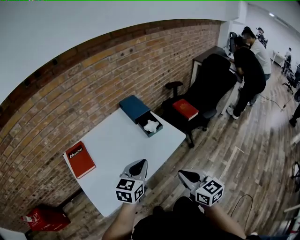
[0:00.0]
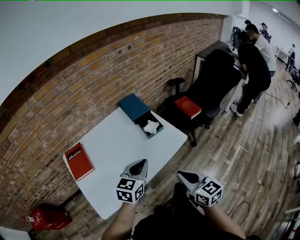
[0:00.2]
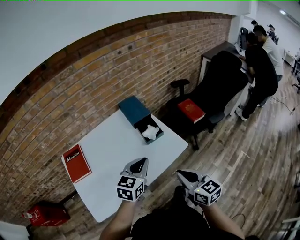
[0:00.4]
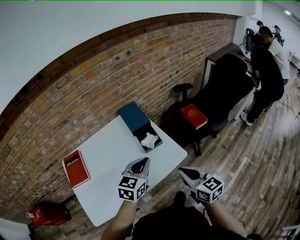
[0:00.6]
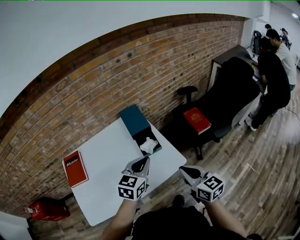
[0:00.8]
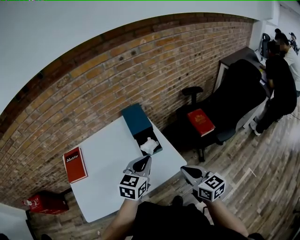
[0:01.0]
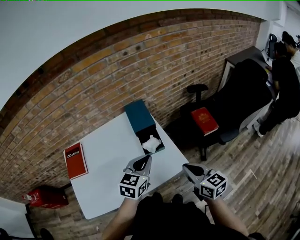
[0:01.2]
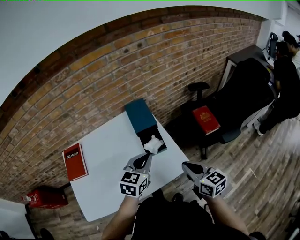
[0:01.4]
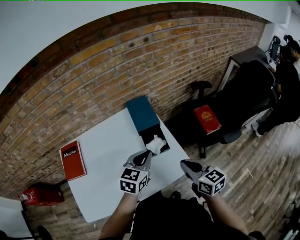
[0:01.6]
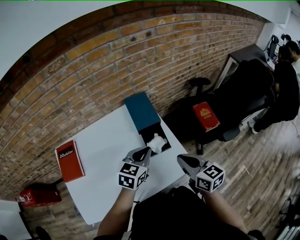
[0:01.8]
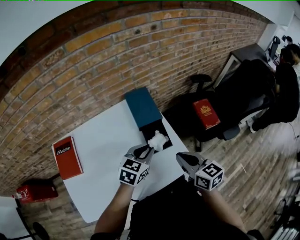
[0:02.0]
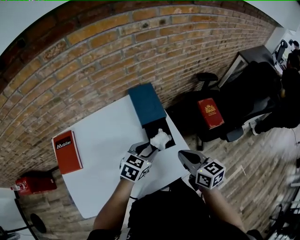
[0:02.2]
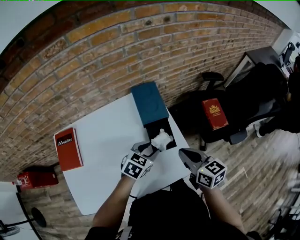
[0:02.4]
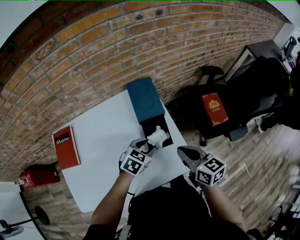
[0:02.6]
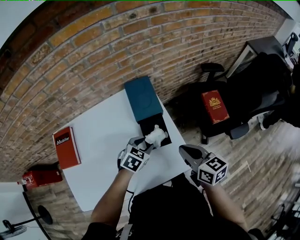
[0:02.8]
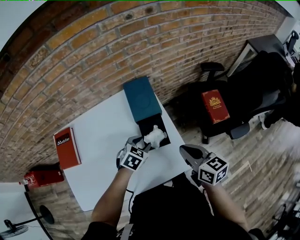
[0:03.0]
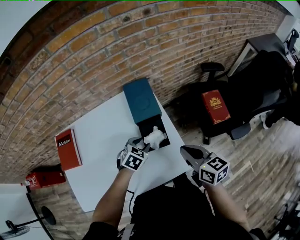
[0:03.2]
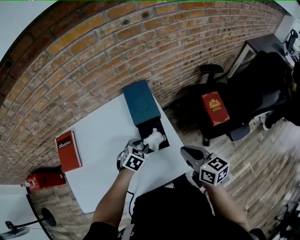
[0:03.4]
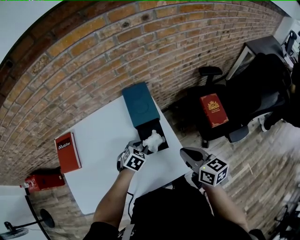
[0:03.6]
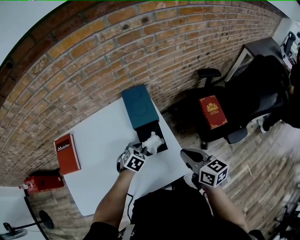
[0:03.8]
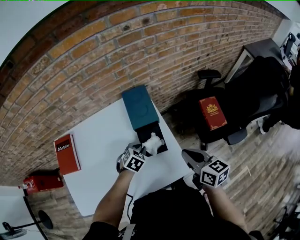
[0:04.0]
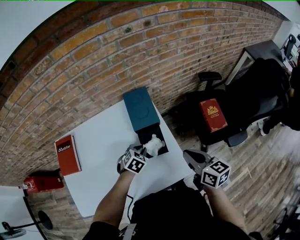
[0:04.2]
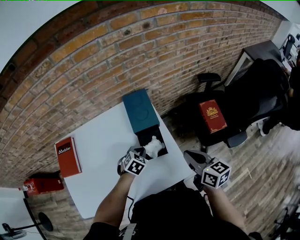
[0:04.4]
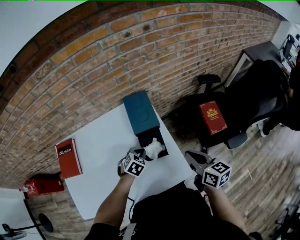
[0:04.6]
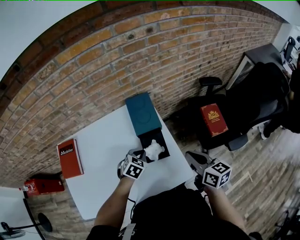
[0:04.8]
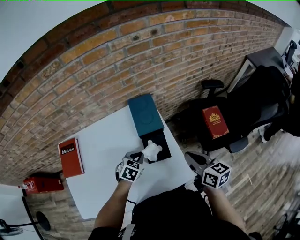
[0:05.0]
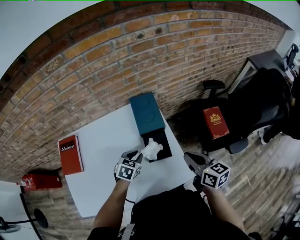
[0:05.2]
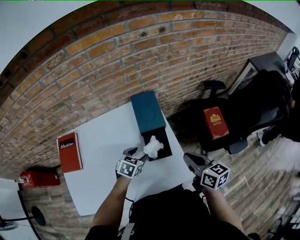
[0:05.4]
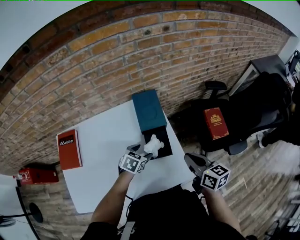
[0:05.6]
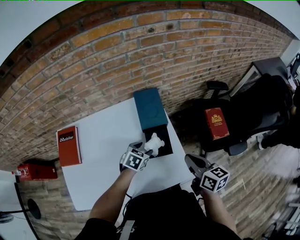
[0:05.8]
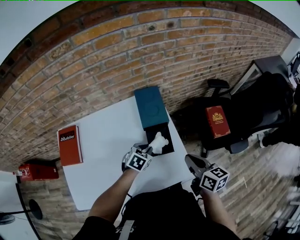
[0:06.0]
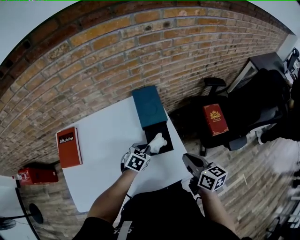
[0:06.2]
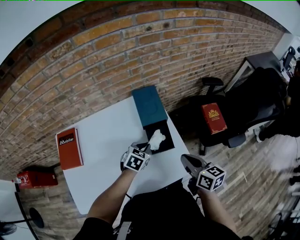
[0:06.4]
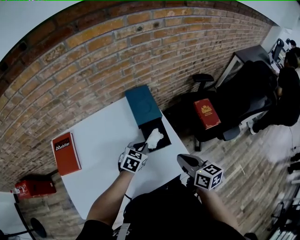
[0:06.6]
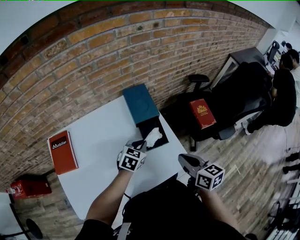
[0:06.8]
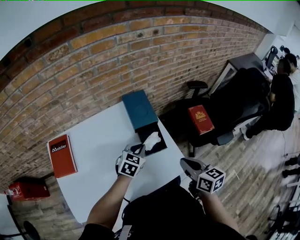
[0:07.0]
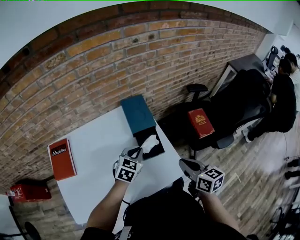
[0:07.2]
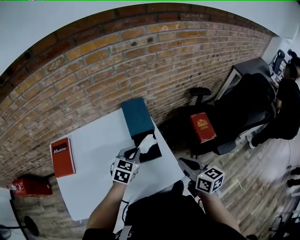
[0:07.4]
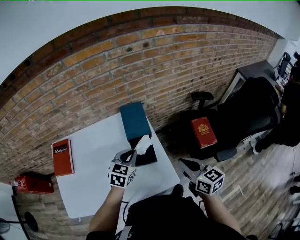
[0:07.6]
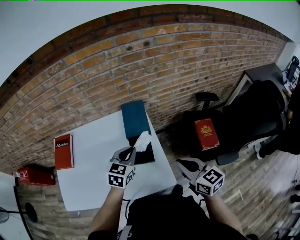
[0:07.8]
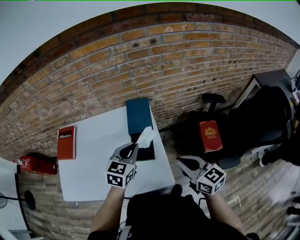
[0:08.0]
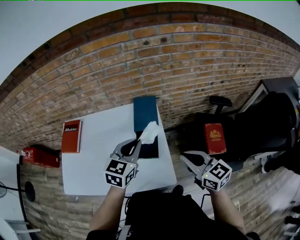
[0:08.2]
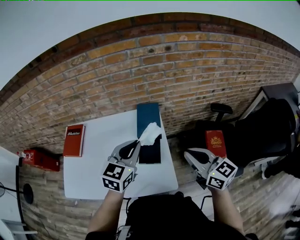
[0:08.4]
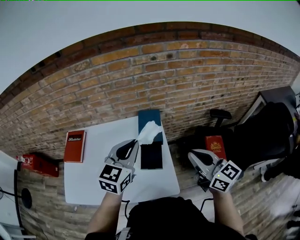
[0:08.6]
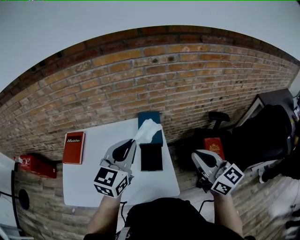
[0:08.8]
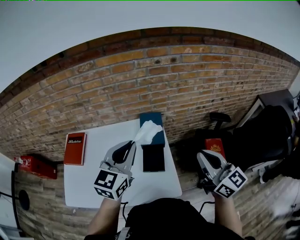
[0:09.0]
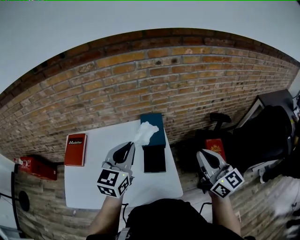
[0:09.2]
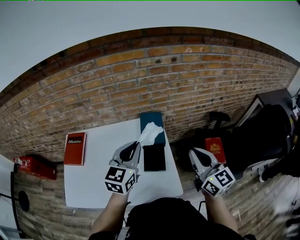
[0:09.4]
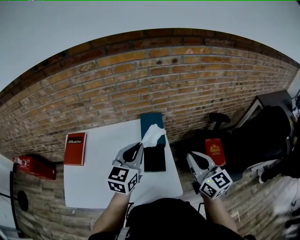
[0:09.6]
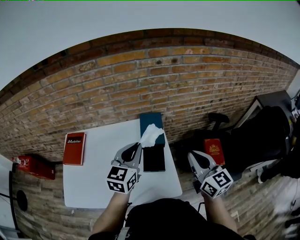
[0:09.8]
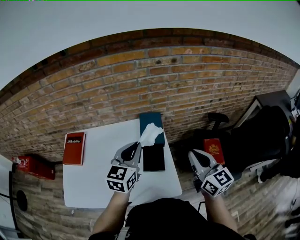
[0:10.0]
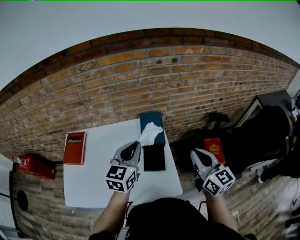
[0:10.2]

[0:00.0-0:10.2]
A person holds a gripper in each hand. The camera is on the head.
0:00.0 to 0:01.4: Both grippers move forward and to the right, approximately 25 cm.
0:01.4 to 0:03.0: The right gripper travels forward by about 10 cm; the left gripper travels downward and forward by some 20 cm, changes its angle by approximately 30 degrees, and opens up.
0:03.0 to 0:04.4: The left gripper closes.
0:04.4 to 0:05.8: The left gripper opens up.
0:05.8 to 0:07.2: The right gripper goes about 5 cm backward; the left gripper travels upward by some 10 cm, swivels about 20 degrees, and closes up.
0:07.2 to 0:08.8: The right gripper moves upward, to the right and forward, some 20 cm, and rotates some 40 degrees. The left gripper shifts some 25 cm upward, and swivels roughly 40 degrees.
0:08.8 to 0:10.2: The left gripper is displaced downward by approximately 5 cm.

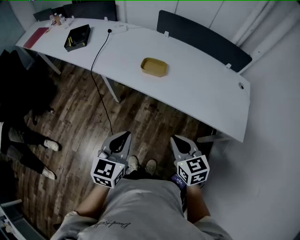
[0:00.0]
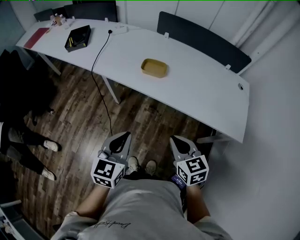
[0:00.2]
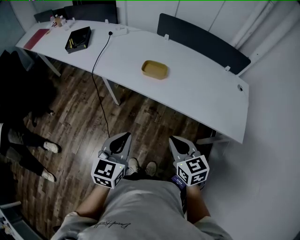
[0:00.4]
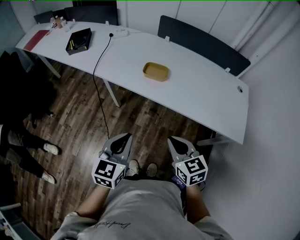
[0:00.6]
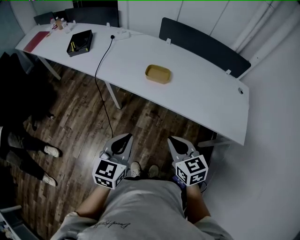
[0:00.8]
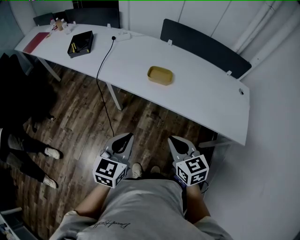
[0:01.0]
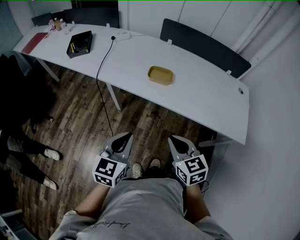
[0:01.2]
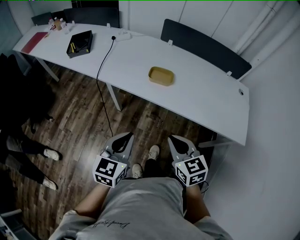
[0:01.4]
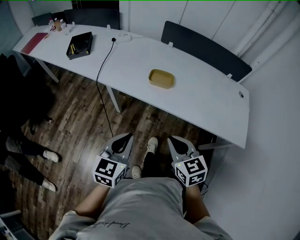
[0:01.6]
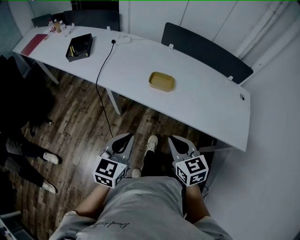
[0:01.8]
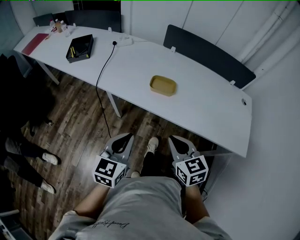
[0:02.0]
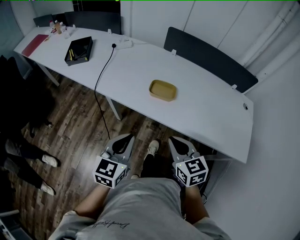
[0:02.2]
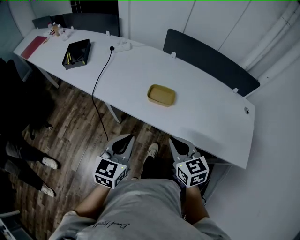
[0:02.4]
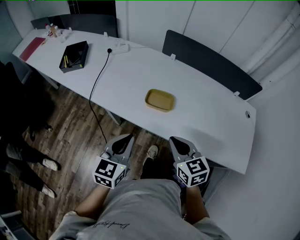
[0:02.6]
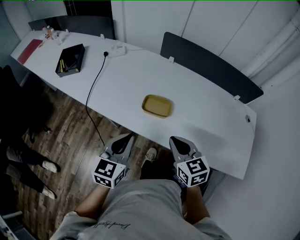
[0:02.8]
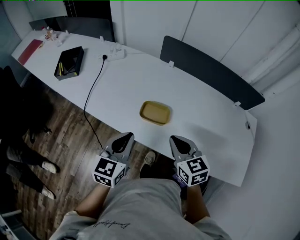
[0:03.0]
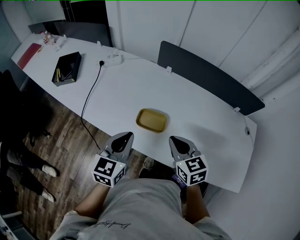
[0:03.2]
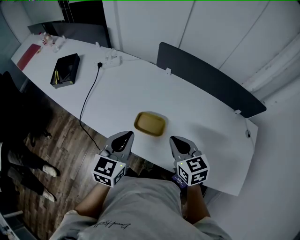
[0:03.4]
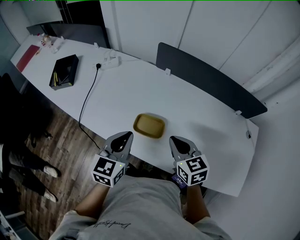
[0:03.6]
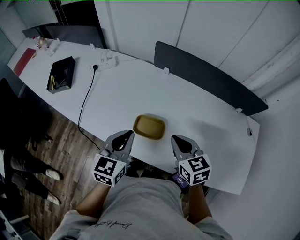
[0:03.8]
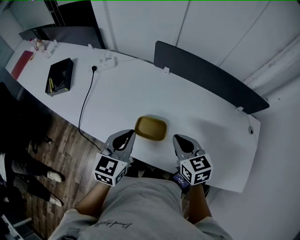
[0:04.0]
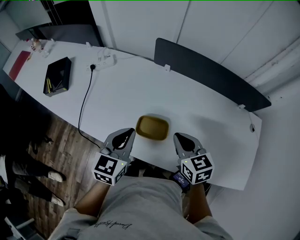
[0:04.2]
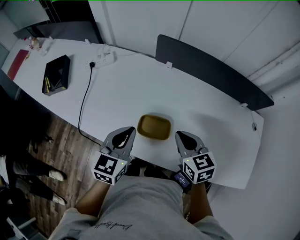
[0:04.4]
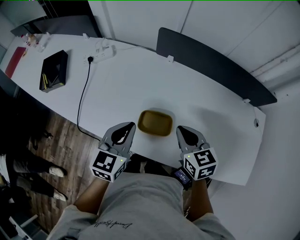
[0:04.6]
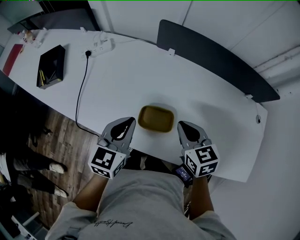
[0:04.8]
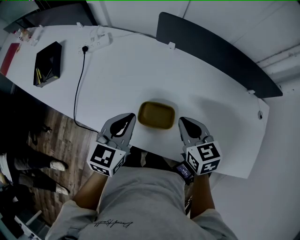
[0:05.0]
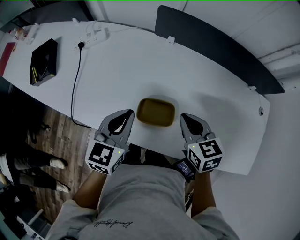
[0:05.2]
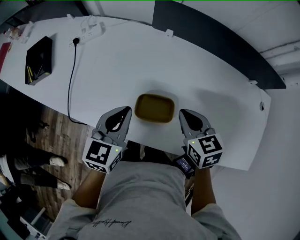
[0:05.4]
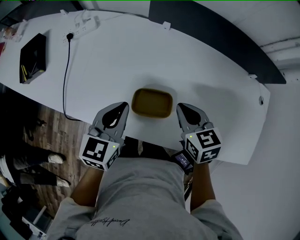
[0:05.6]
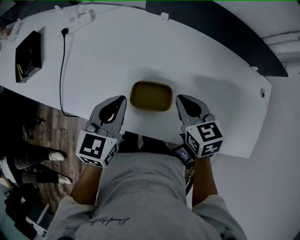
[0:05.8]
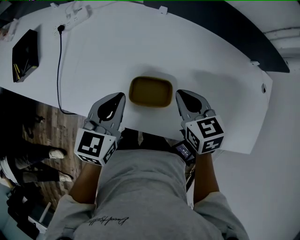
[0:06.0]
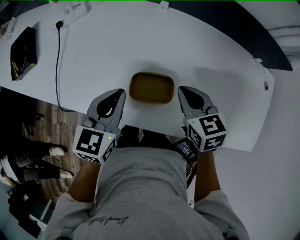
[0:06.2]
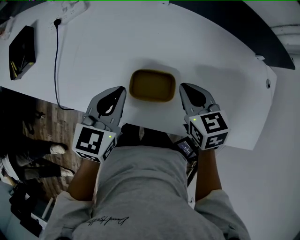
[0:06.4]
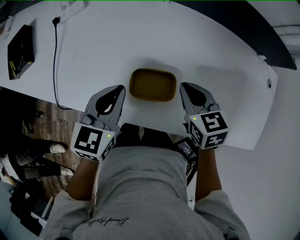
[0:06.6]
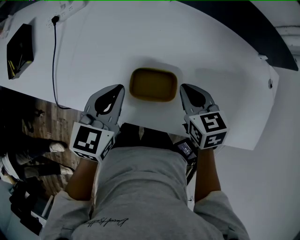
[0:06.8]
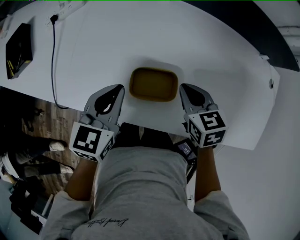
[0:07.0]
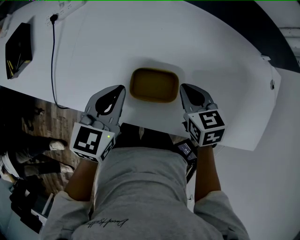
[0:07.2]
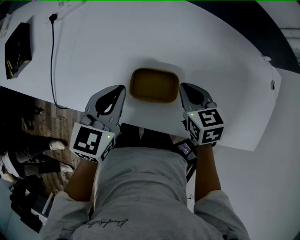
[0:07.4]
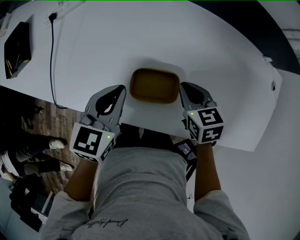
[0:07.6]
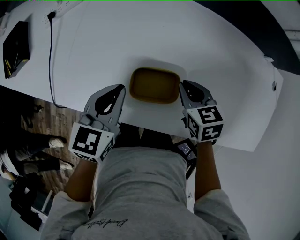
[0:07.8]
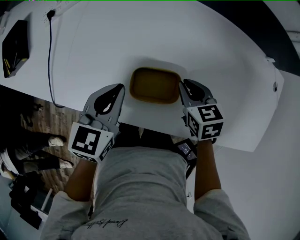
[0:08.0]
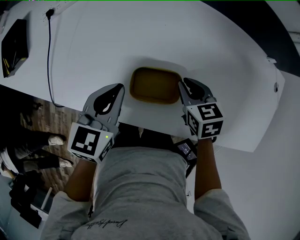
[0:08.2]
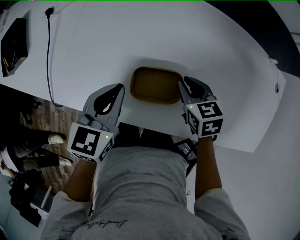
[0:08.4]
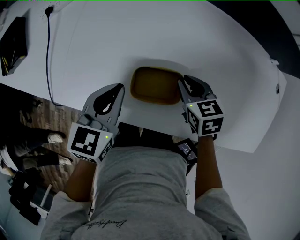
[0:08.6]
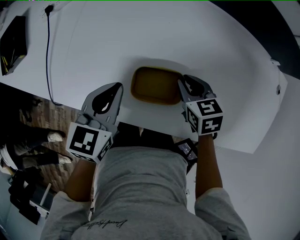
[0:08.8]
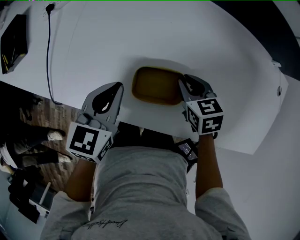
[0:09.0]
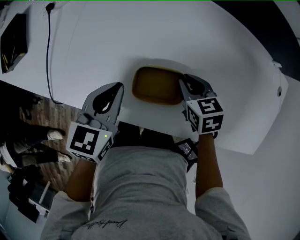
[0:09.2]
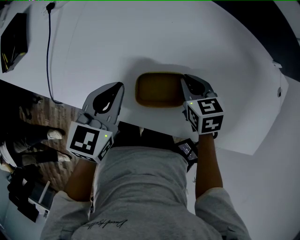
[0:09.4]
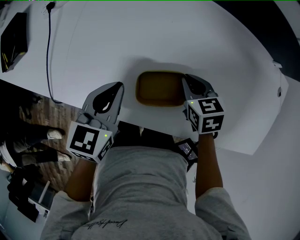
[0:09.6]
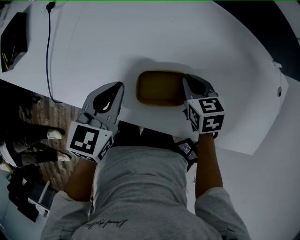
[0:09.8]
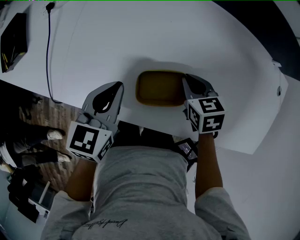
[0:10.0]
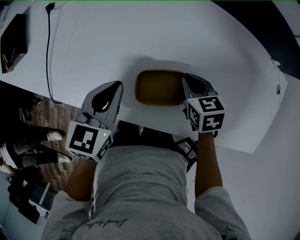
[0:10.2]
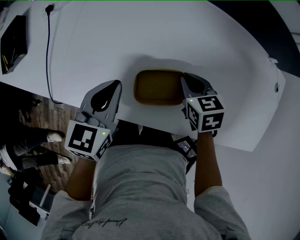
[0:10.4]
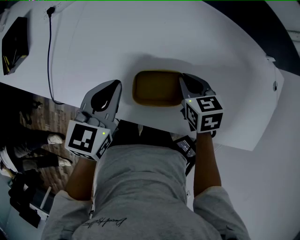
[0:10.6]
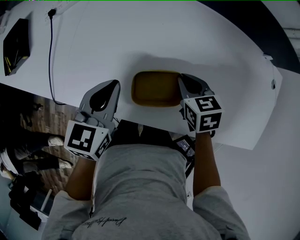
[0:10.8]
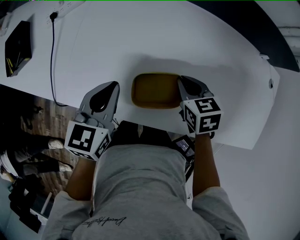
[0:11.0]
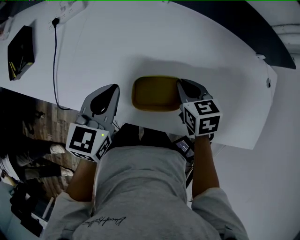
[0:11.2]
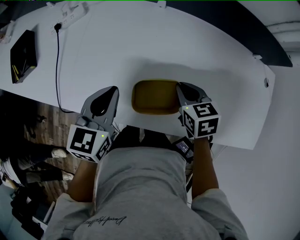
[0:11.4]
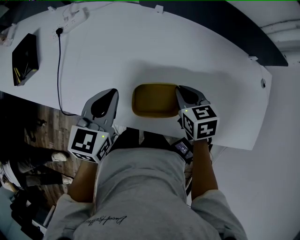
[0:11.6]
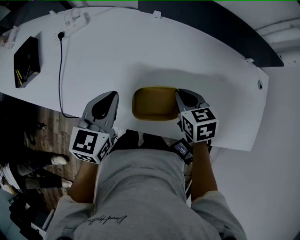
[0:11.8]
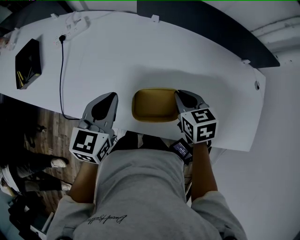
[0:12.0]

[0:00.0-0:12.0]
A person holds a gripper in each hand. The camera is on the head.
0:00.0 to 0:01.6: Both grippers travel together to the left, roughly 10 cm.
0:01.6 to 0:03.0: The two grippers go some 25 cm forward.
0:03.0 to 0:04.4: Both grippers move forward, approximately 15 cm.
0:04.4 to 0:06.0: Both grippers move downward, about 5 cm.
0:06.0 to 0:07.6: The right gripper heads downward, covering approximately 10 cm.
0:07.6 to 0:10.4: The grippers make only small movements.
0:10.4 to 0:12.0: The two grippers go approximately 10 cm upward.

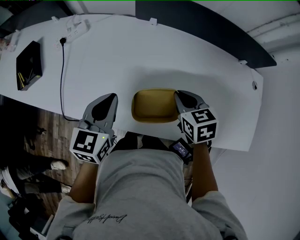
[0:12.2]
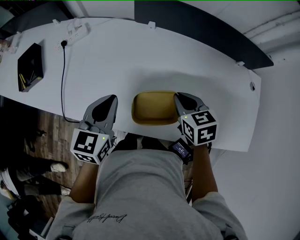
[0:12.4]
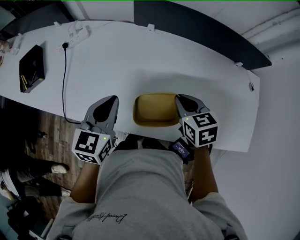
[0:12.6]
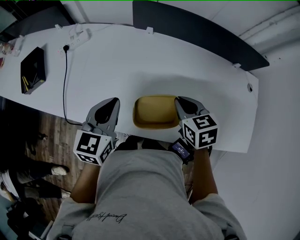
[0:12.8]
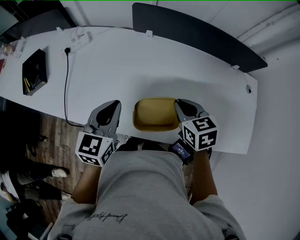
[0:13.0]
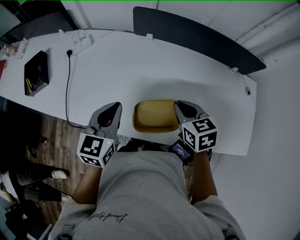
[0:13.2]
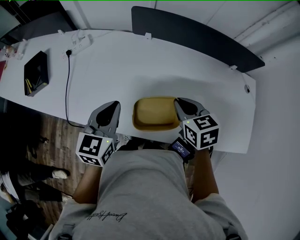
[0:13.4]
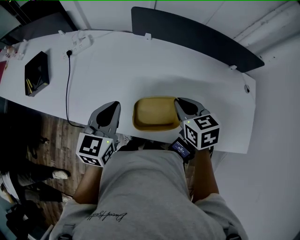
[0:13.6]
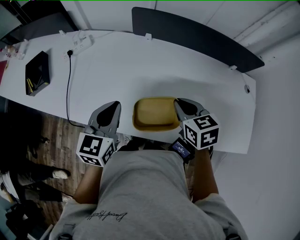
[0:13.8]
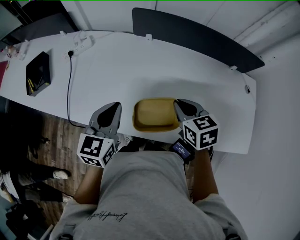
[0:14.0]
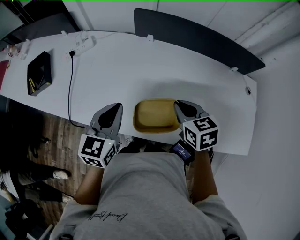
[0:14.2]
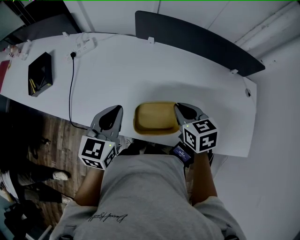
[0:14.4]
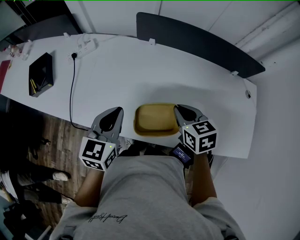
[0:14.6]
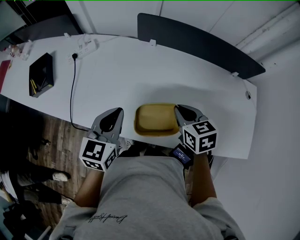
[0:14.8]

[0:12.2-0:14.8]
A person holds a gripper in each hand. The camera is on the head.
0:12.2 to 0:13.4: The right gripper heads upward, covering about 5 cm.
0:13.4 to 0:14.8: The grippers make only small movements.
